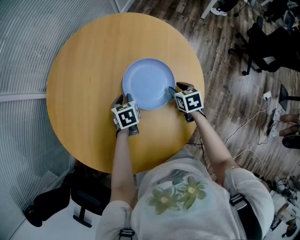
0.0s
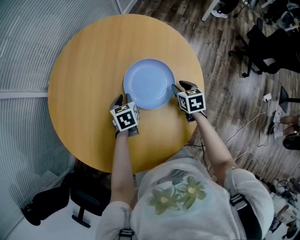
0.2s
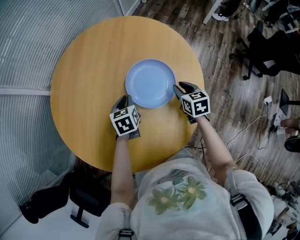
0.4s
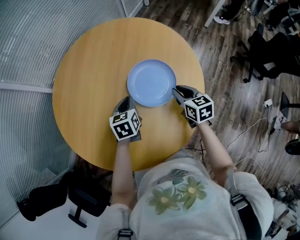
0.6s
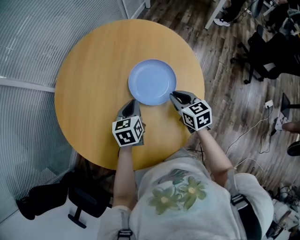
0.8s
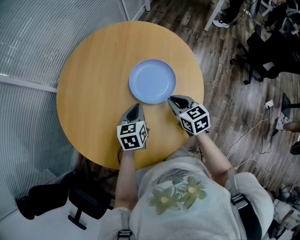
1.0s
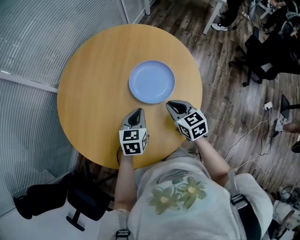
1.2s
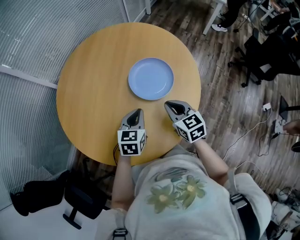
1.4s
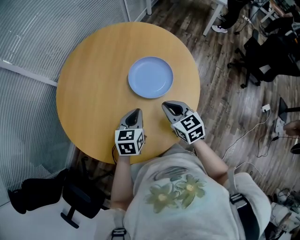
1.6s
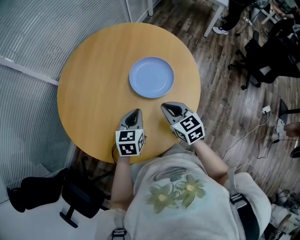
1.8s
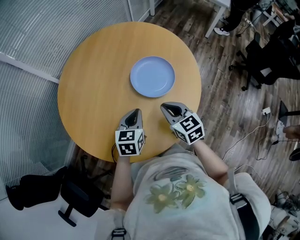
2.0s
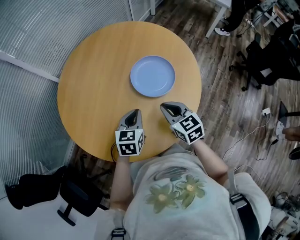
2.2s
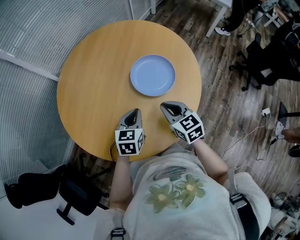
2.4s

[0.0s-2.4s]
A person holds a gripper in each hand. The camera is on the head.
0.0s to 1.2s: The left gripper heads backward and upward, covering approximately 20 cm, and rotates approximately 20 degrees, while the right gripper moves backward, upward and to the left, approximately 20 cm, swivels some 20 degrees, and closes up.
1.2s to 2.4s: The right gripper moves roughly 5 cm.

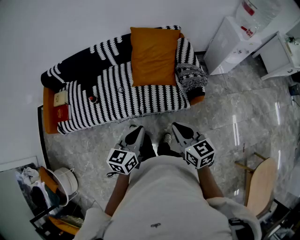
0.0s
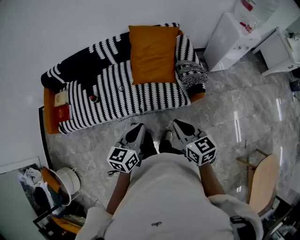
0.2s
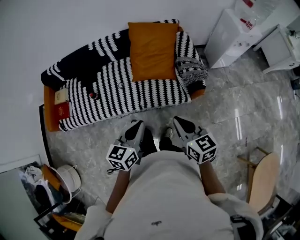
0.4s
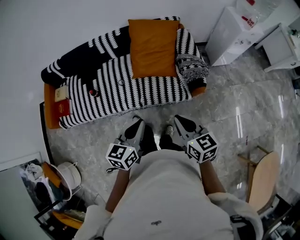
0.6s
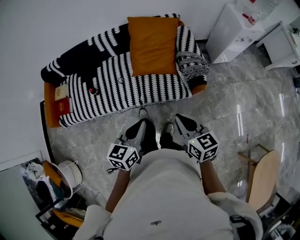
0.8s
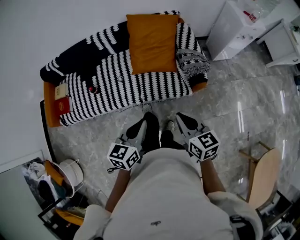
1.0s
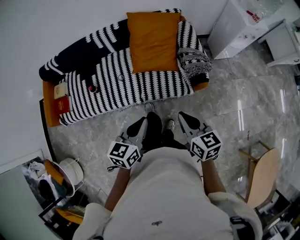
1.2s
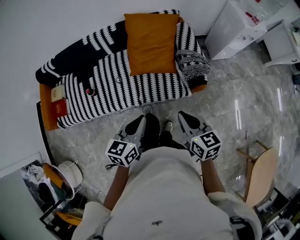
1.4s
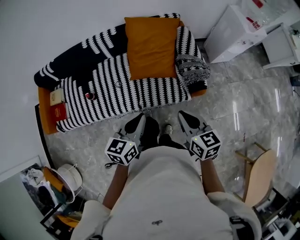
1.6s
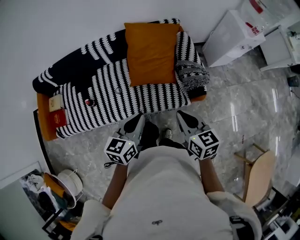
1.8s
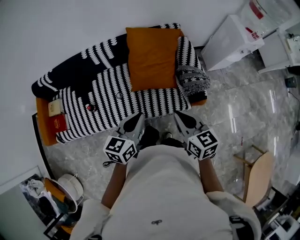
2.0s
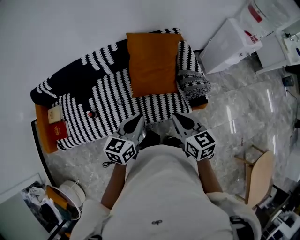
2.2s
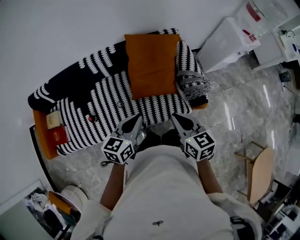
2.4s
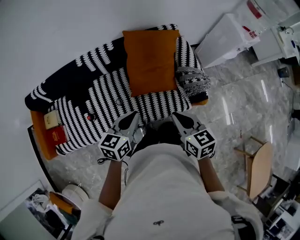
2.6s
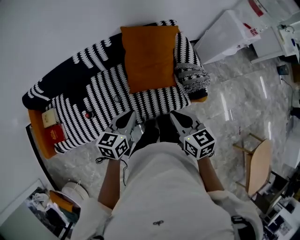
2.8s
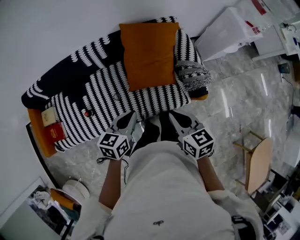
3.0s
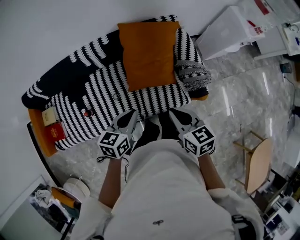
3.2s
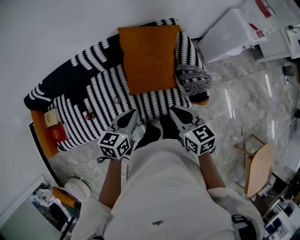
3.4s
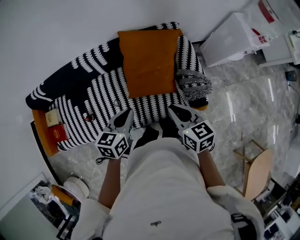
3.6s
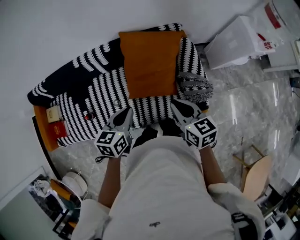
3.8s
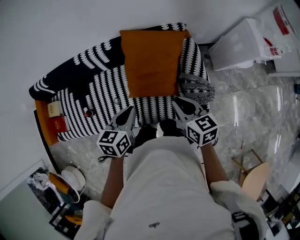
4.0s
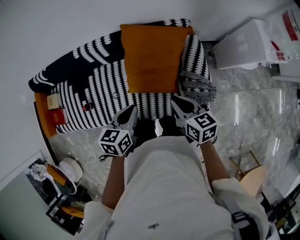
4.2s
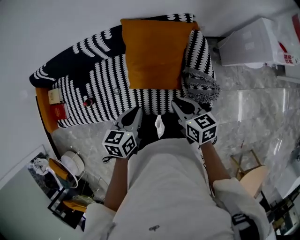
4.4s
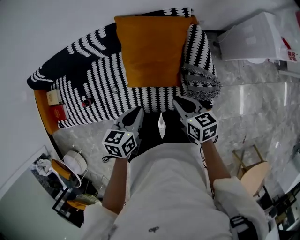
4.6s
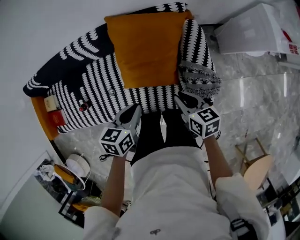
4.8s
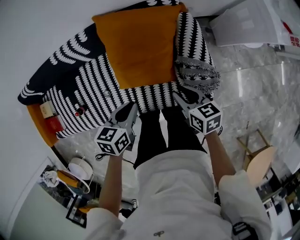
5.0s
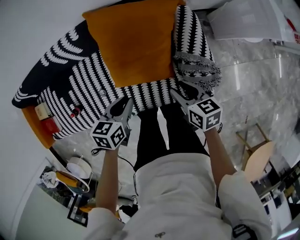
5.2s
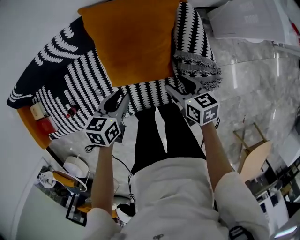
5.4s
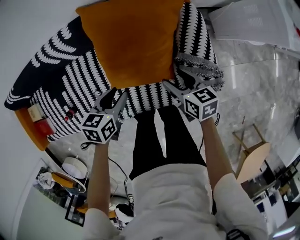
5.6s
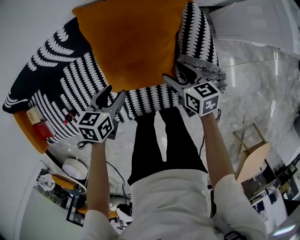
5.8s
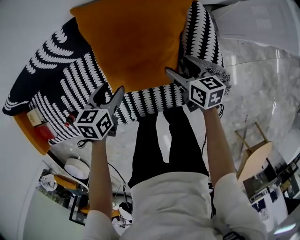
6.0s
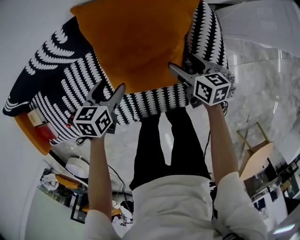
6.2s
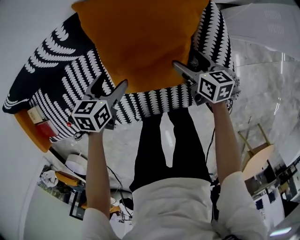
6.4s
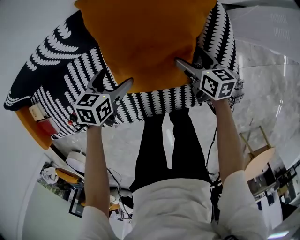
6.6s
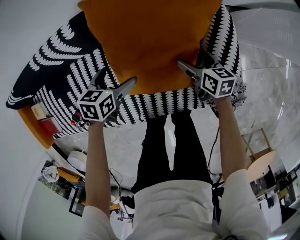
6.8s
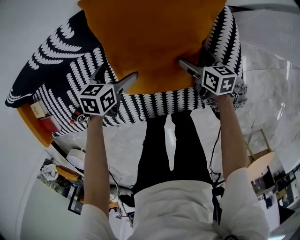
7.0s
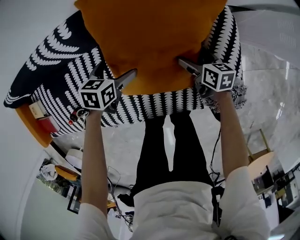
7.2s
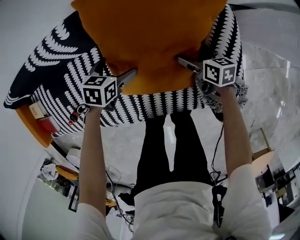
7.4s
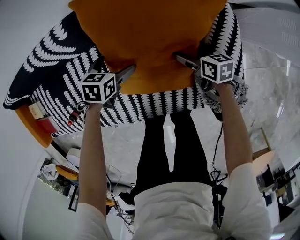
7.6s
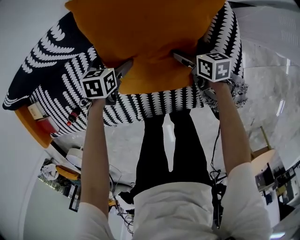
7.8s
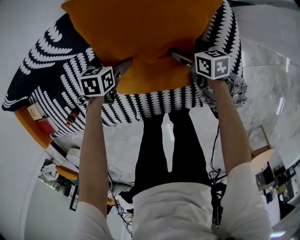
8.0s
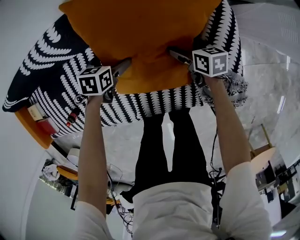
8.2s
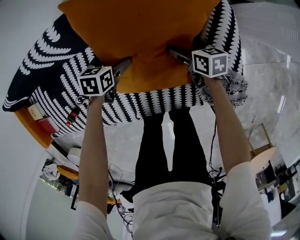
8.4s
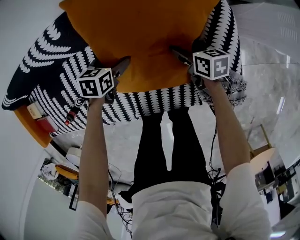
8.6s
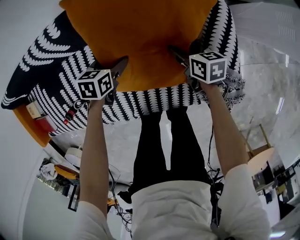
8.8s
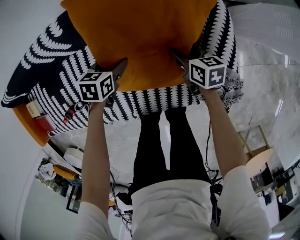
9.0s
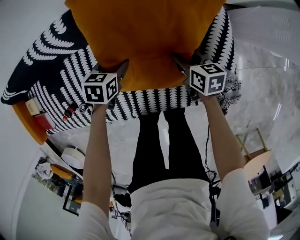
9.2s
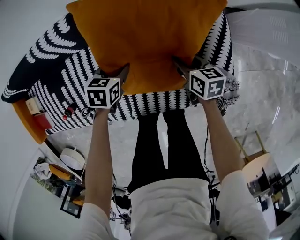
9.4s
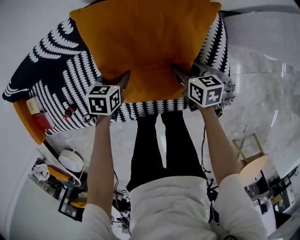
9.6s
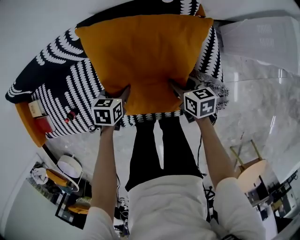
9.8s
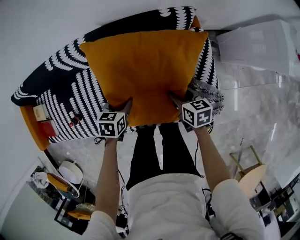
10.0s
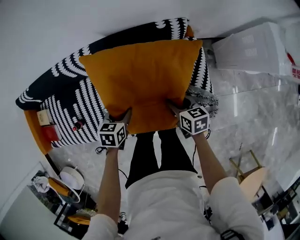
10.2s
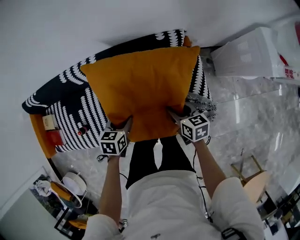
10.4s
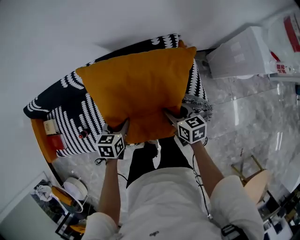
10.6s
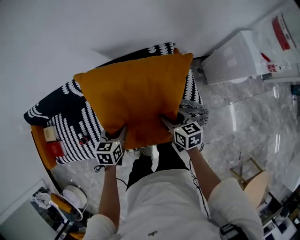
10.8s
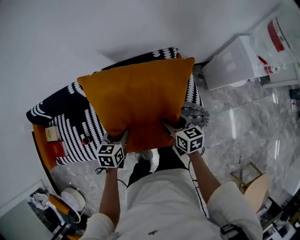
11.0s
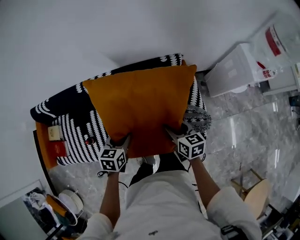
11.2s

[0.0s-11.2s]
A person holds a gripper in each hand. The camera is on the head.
0.0s to 1.6s: Both grippers travel together forward, roughly 10 cm.
1.6s to 3.2s: Both grippers travel together forward and to the left, some 15 cm.
3.2s to 4.8s: The right gripper is displaced downward, to the right and forward by some 25 cm; the left gripper heads to the right, forward and downward, covering about 15 cm.
4.8s to 6.4s: The right gripper shifts some 25 cm downward and forward, and opens, while the left gripper travels downward, forward and to the left by roughly 25 cm, and opens its fingers.
6.4s to 8.0s: Both grippers move downward and forward, roughly 10 cm.
8.0s to 9.6s: The left gripper goes approximately 10 cm backward, to the right and upward, and closes up, while the right gripper is displaced upward and backward by approximately 10 cm, and closes.
9.6s to 11.2s: Both grippers move upward and backward, approximately 30 cm.

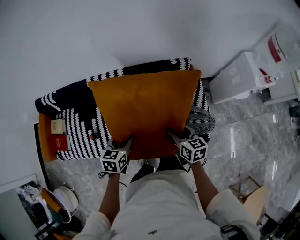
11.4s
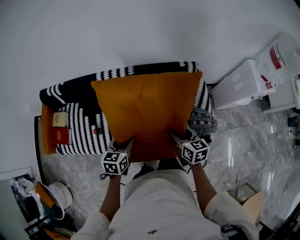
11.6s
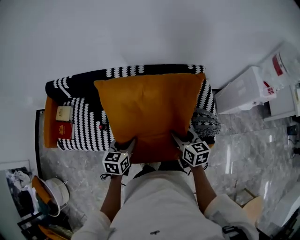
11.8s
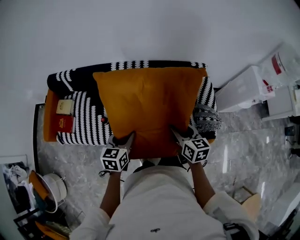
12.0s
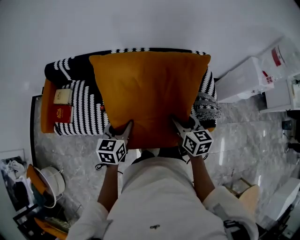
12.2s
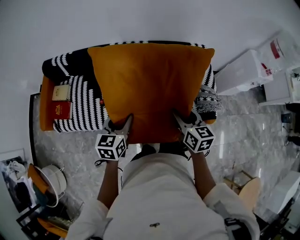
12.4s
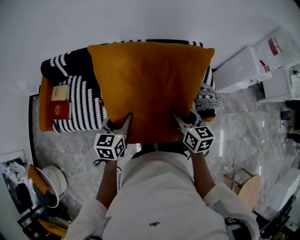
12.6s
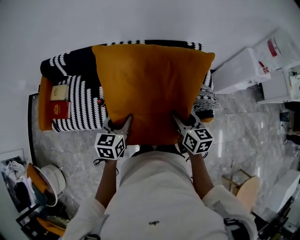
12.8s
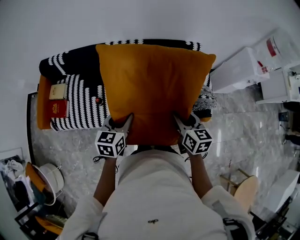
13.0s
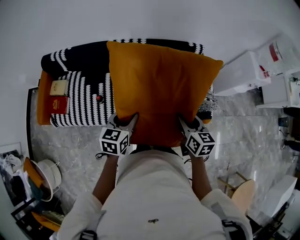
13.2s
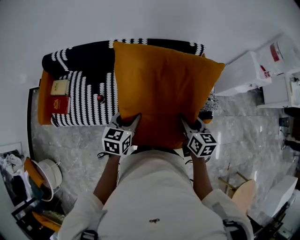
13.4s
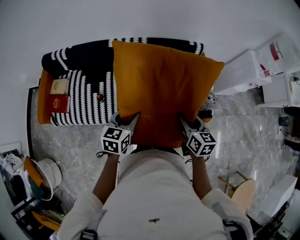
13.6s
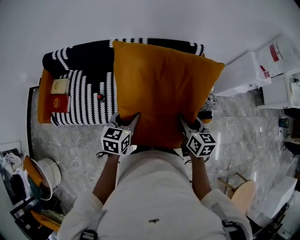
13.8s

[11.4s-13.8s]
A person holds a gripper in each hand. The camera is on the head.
11.4s to 12.6s: Both grippers move to the left, backward and upward, approximately 25 cm.
12.6s to 13.8s: The two grippers go about 5 cm to the right.

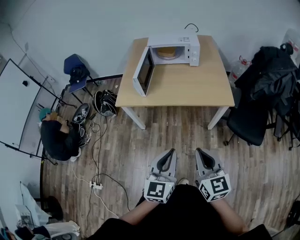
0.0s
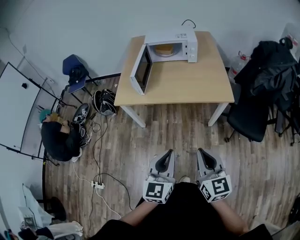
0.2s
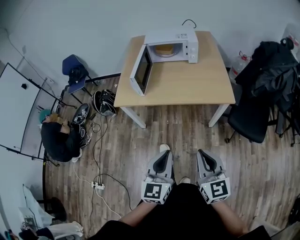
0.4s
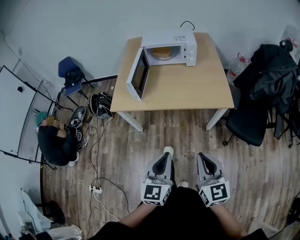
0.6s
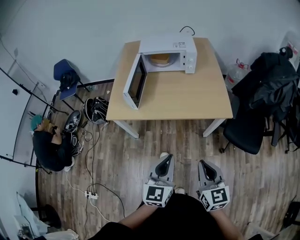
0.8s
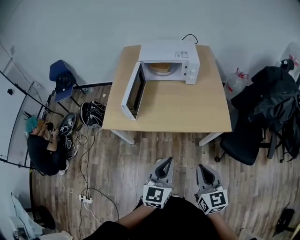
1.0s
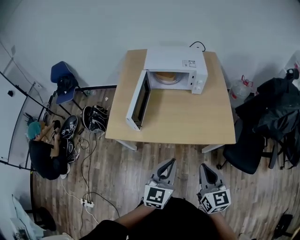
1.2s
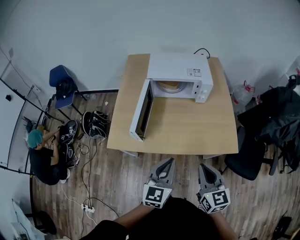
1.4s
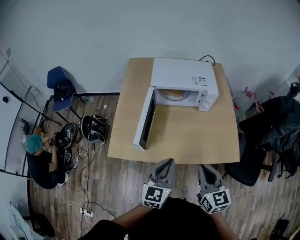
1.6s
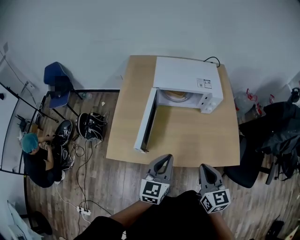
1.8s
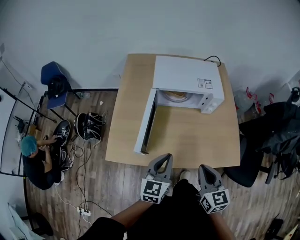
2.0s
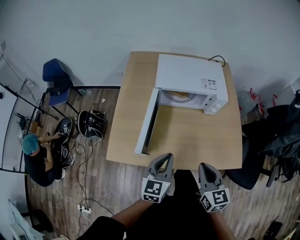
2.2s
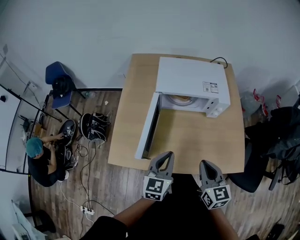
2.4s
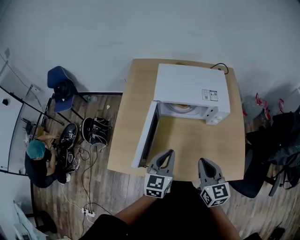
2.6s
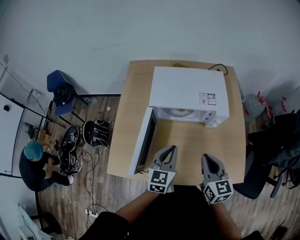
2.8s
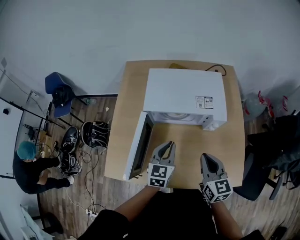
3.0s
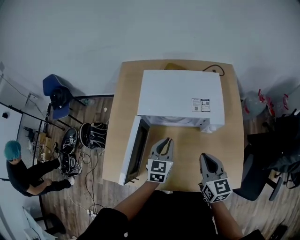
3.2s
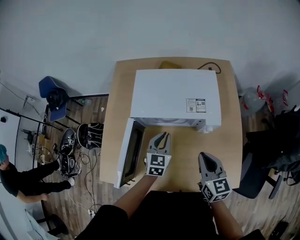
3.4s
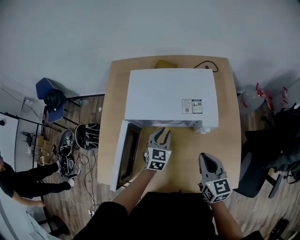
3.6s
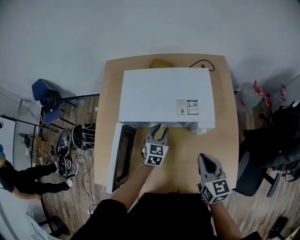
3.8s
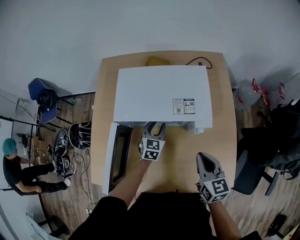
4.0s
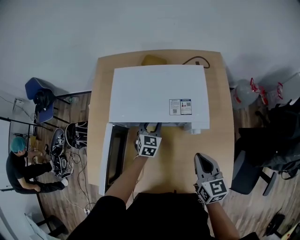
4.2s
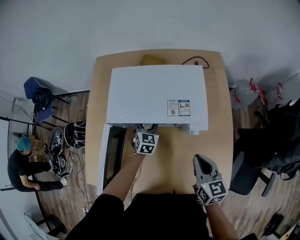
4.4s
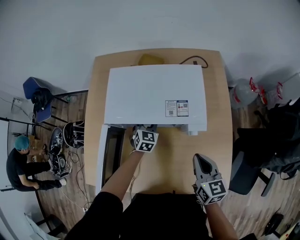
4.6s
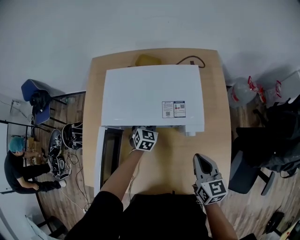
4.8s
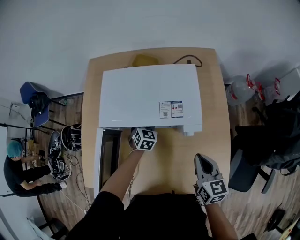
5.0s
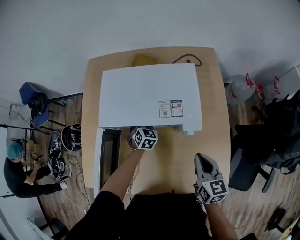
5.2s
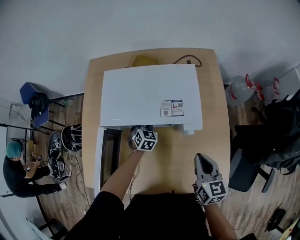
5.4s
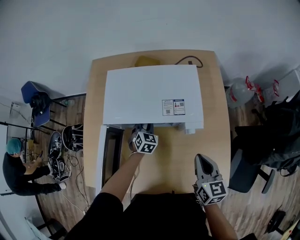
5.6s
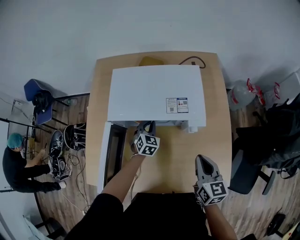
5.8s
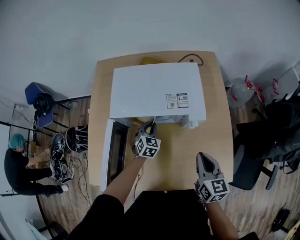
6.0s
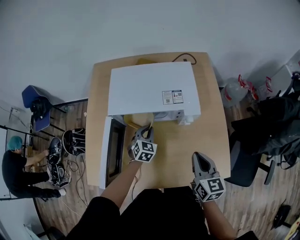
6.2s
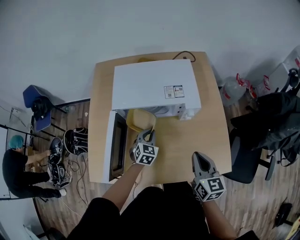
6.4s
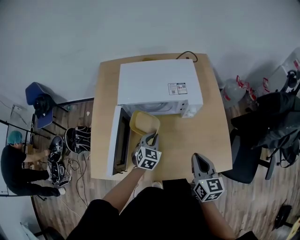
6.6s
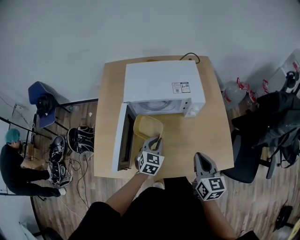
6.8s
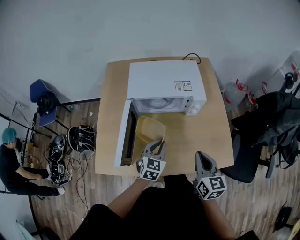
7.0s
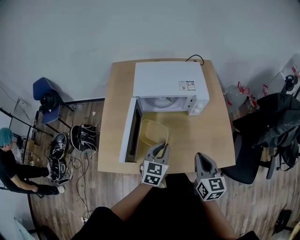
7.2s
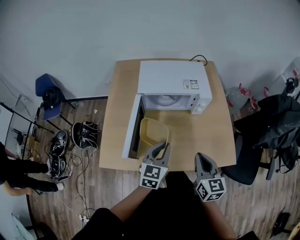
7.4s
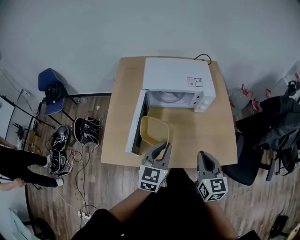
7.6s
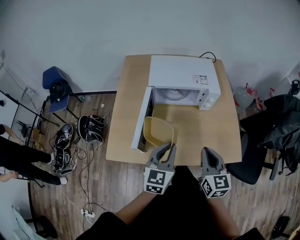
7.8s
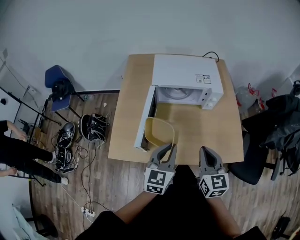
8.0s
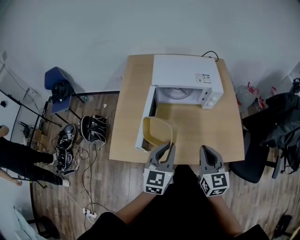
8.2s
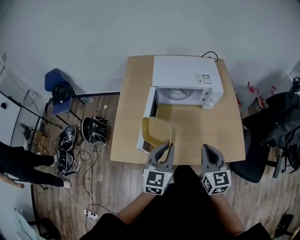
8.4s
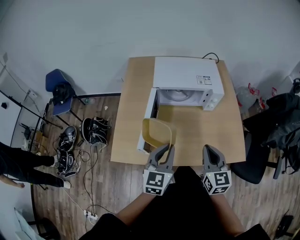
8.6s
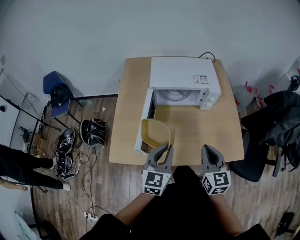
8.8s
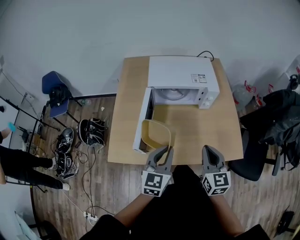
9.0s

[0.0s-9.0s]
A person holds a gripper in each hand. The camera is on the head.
0.0s to 1.6s: Both grippers move forward, about 35 cm.
1.6s to 3.0s: The grippers both shift forward by some 25 cm.
3.0s to 4.4s: The left gripper heads forward and downward, covering approximately 25 cm, and opens its fingers; the right gripper is displaced to the right, forward and downward by about 10 cm.
4.4s to 6.0s: The left gripper heads backward, covering roughly 5 cm, and closes up.
6.0s to 7.6s: The left gripper travels backward and upward by some 40 cm, and rotates roughly 30 degrees; the right gripper goes some 20 cm backward and to the left.
7.6s to 9.0s: The grippers make only small movements.
